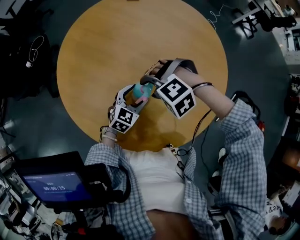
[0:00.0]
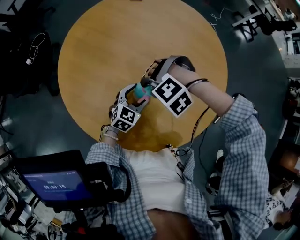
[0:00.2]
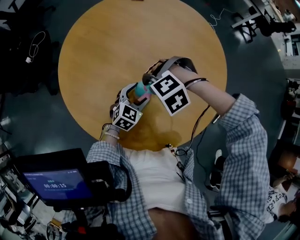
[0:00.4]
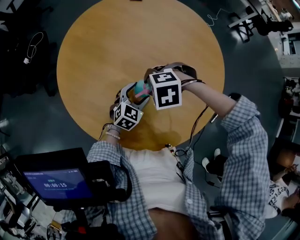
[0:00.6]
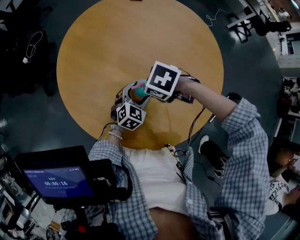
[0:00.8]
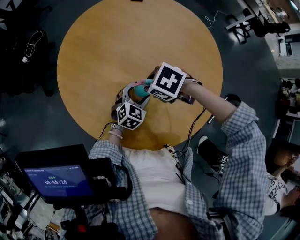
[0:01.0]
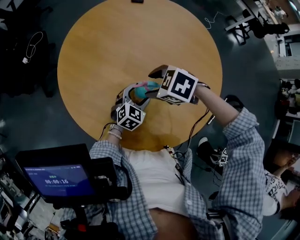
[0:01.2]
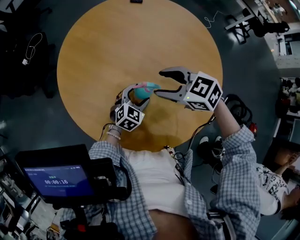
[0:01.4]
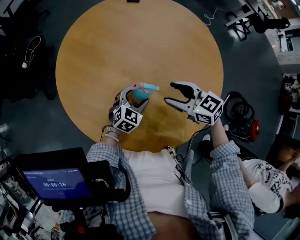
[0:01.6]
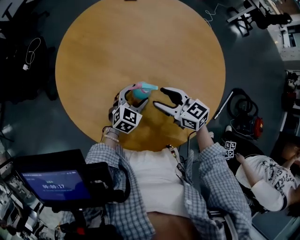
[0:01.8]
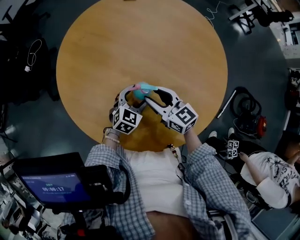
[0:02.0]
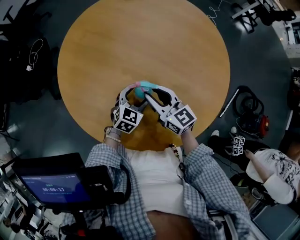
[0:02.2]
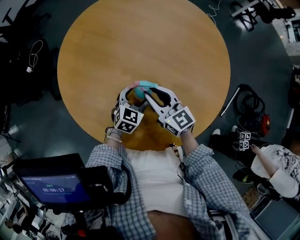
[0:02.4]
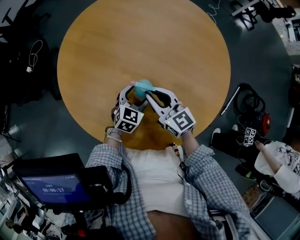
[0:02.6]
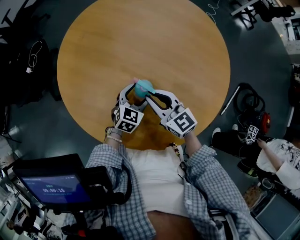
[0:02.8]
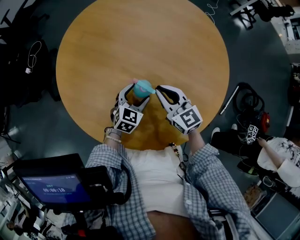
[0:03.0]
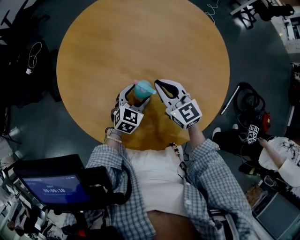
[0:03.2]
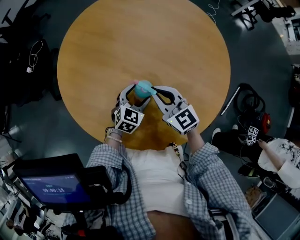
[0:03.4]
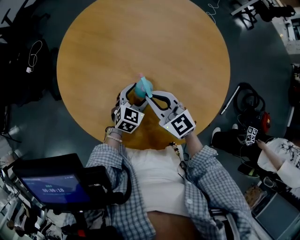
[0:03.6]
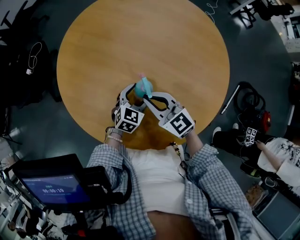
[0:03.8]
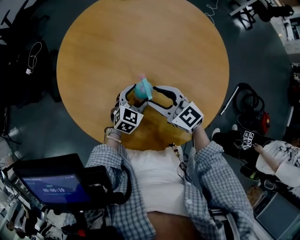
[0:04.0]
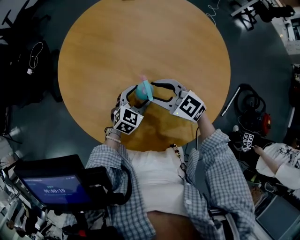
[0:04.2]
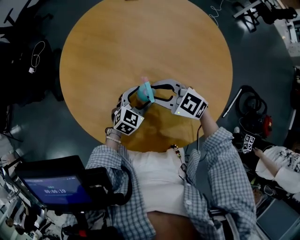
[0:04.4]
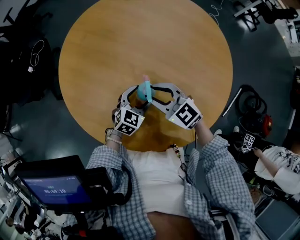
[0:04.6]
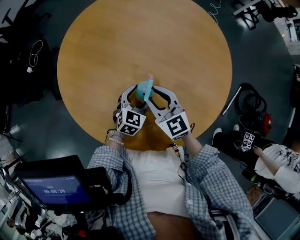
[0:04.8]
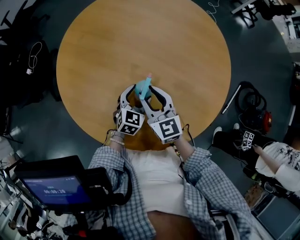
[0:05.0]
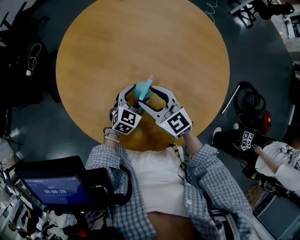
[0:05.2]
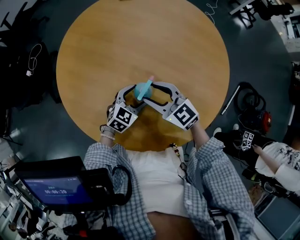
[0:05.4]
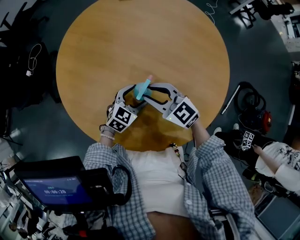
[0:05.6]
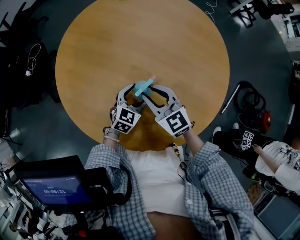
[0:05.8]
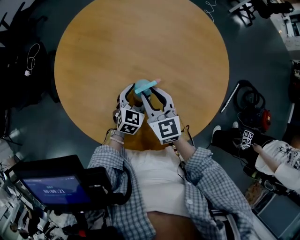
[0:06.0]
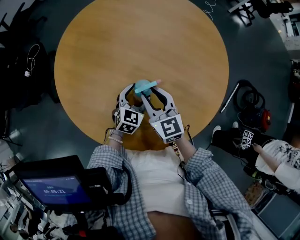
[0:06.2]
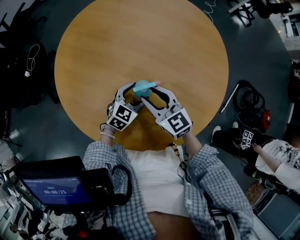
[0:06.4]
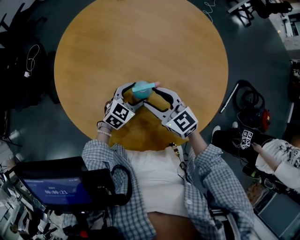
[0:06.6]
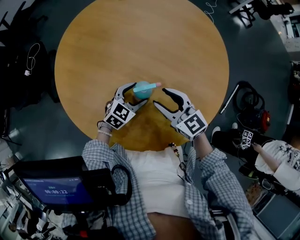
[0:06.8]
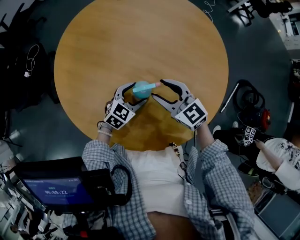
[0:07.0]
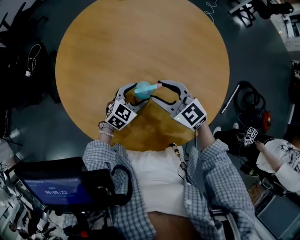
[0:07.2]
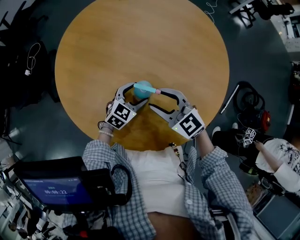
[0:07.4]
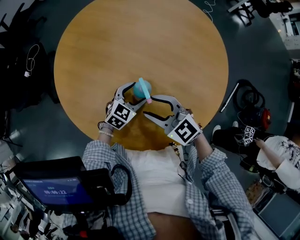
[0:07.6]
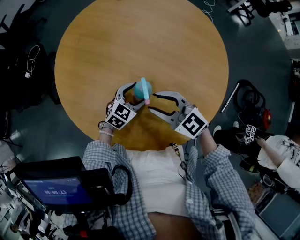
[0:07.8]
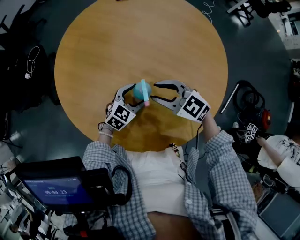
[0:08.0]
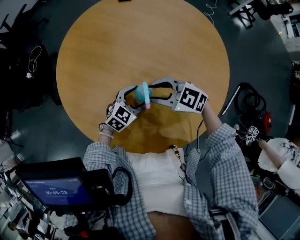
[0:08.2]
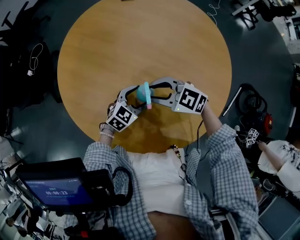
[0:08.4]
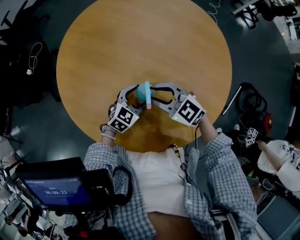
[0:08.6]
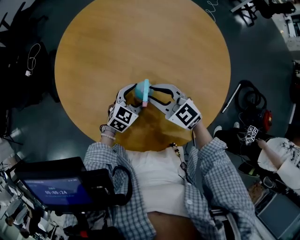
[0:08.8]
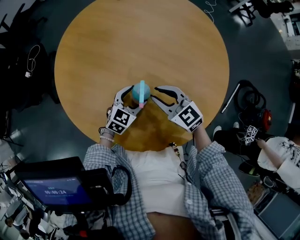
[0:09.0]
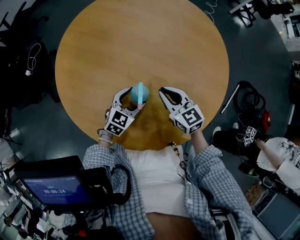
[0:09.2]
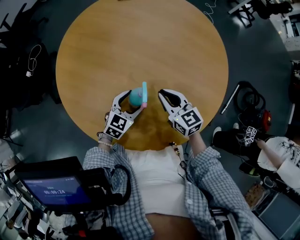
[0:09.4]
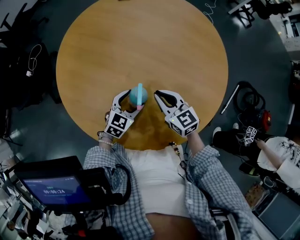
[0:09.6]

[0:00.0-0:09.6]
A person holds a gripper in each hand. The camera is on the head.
0:00.0 to 0:01.6: The right gripper shifts by roughly 10 cm, twists some 80 degrees clockwise, seen from behind, and closes, then reopens.
0:01.6 to 0:03.2: The right gripper goes roughly 5 cm to the left, changes its angle by some 30 degrees, and closes up.
0:03.2 to 0:04.8: The right gripper shifts by some 5 cm, and opens.
0:06.4 to 0:08.0: The right gripper changes its angle by approximately 30 degrees.
0:08.0 to 0:09.6: The right gripper turns by roughly 30 degrees, and closes up.

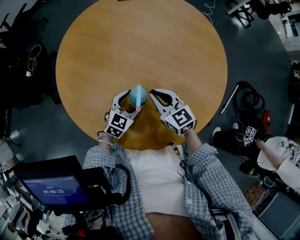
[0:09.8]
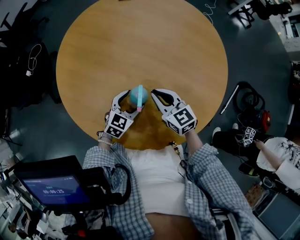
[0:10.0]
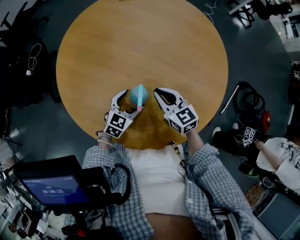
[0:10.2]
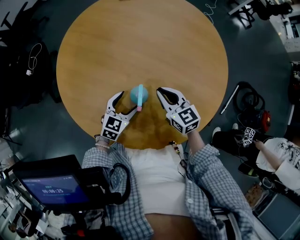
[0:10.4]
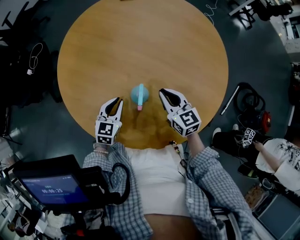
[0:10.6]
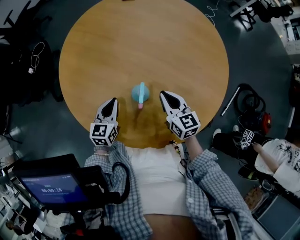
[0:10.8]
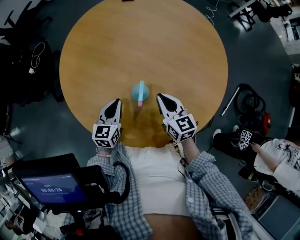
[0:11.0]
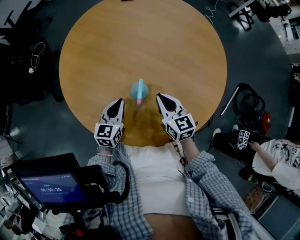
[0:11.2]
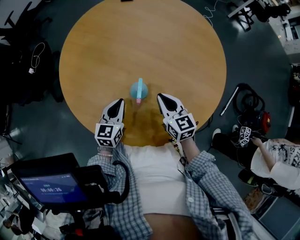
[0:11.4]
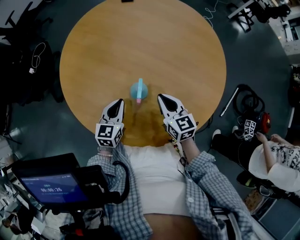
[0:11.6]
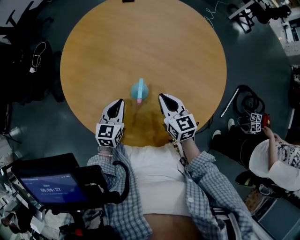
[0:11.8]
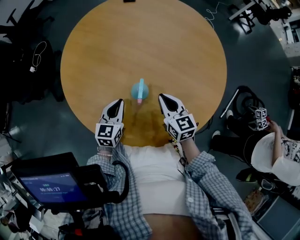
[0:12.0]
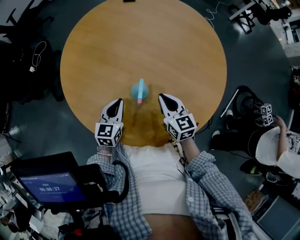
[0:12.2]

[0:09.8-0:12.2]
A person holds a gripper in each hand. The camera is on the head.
0:09.8 to 0:11.0: The left gripper heads to the left and upward, covering approximately 10 cm, changes its angle by about 30 degrees, and closes its fingers.
0:11.0 to 0:12.2: There are only small adjustments of the grippers.

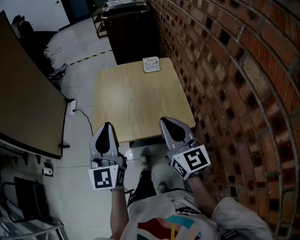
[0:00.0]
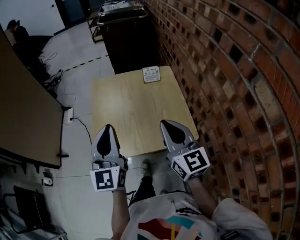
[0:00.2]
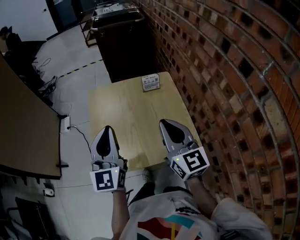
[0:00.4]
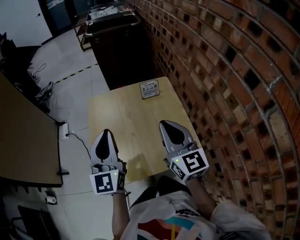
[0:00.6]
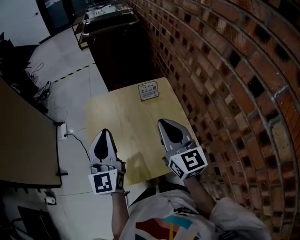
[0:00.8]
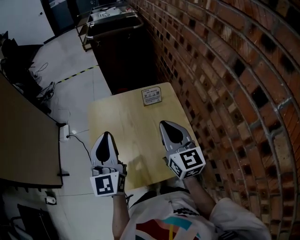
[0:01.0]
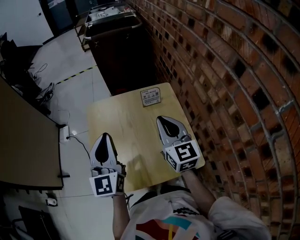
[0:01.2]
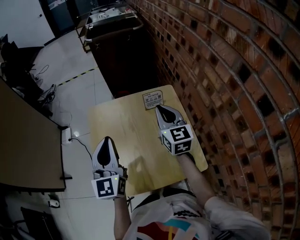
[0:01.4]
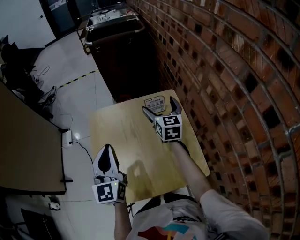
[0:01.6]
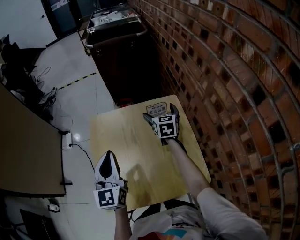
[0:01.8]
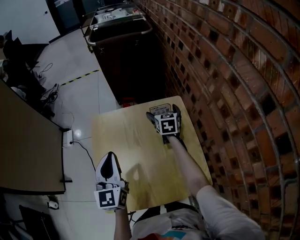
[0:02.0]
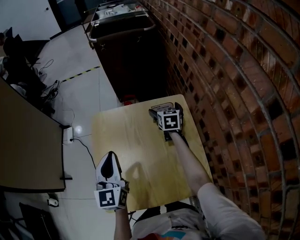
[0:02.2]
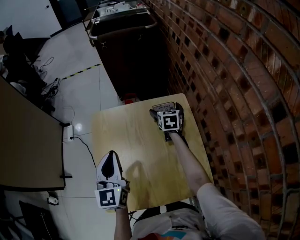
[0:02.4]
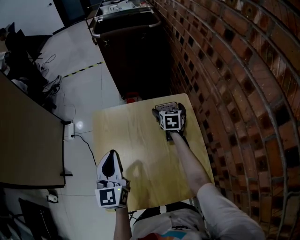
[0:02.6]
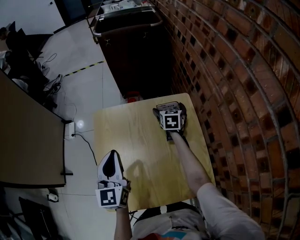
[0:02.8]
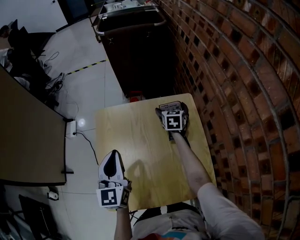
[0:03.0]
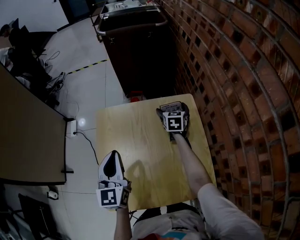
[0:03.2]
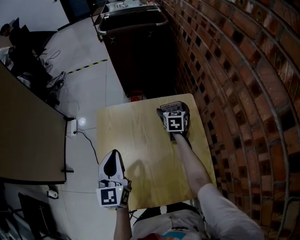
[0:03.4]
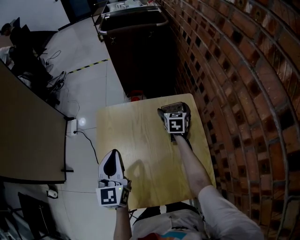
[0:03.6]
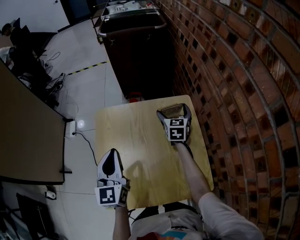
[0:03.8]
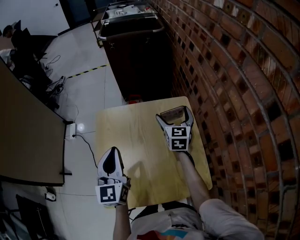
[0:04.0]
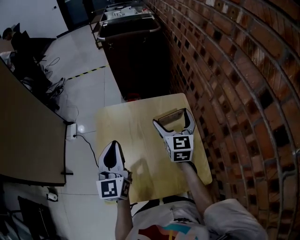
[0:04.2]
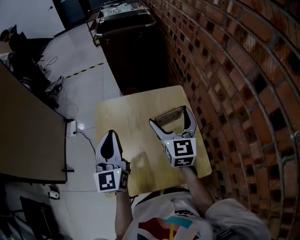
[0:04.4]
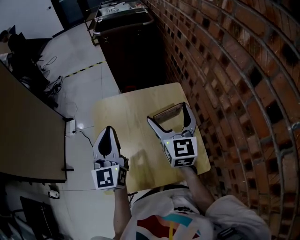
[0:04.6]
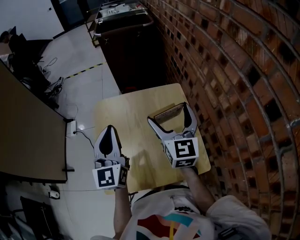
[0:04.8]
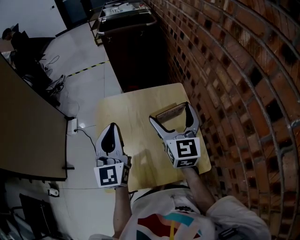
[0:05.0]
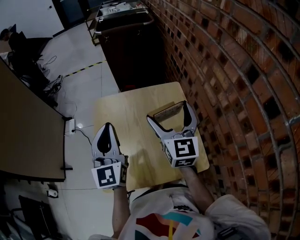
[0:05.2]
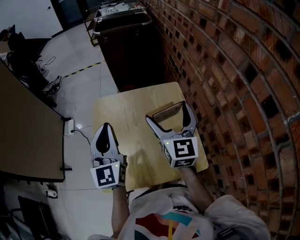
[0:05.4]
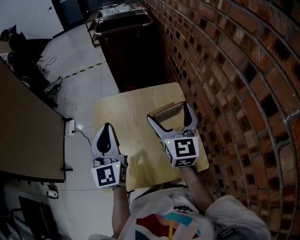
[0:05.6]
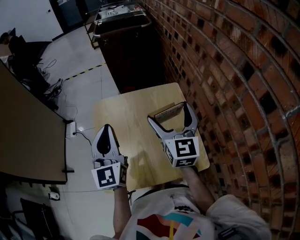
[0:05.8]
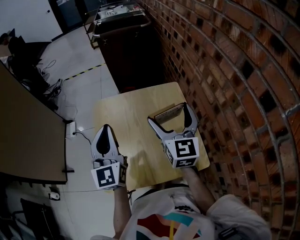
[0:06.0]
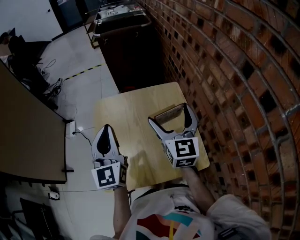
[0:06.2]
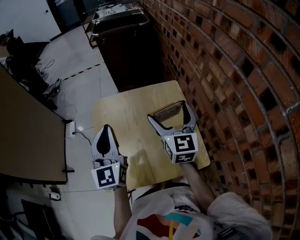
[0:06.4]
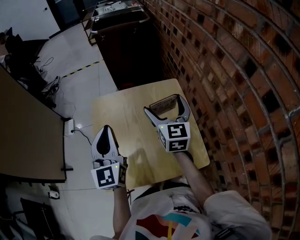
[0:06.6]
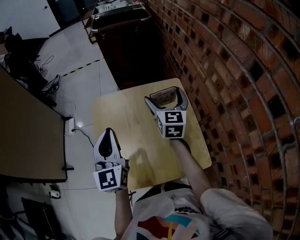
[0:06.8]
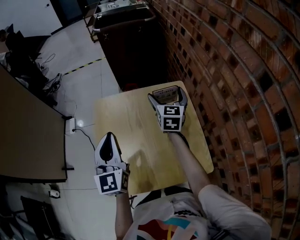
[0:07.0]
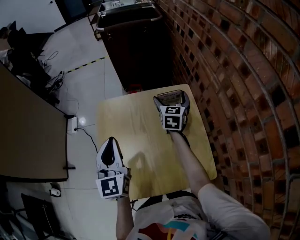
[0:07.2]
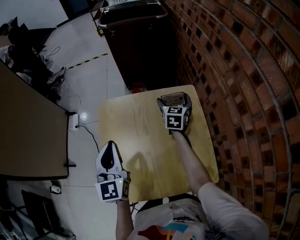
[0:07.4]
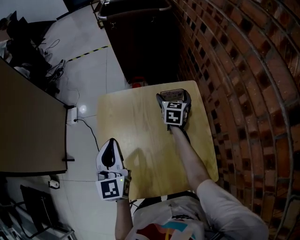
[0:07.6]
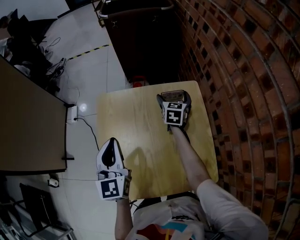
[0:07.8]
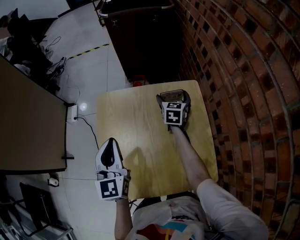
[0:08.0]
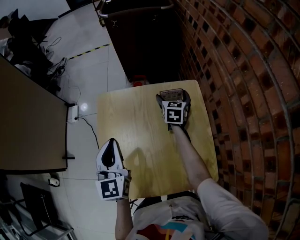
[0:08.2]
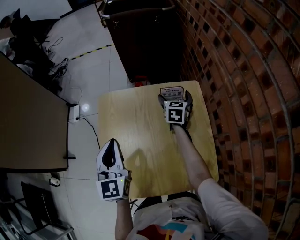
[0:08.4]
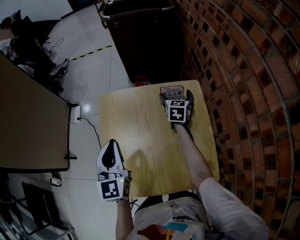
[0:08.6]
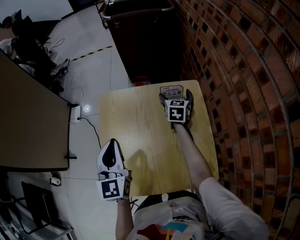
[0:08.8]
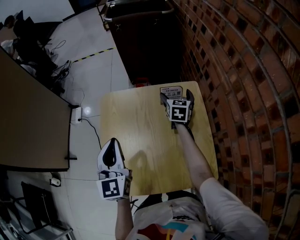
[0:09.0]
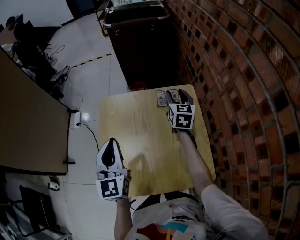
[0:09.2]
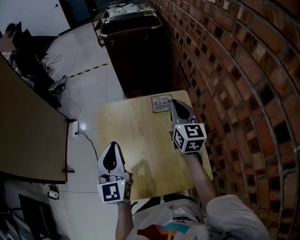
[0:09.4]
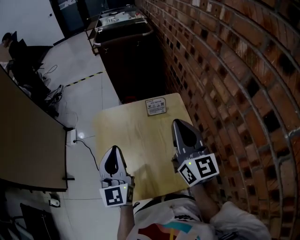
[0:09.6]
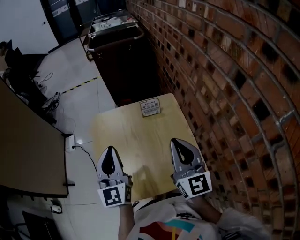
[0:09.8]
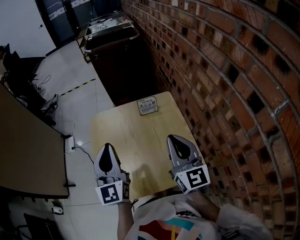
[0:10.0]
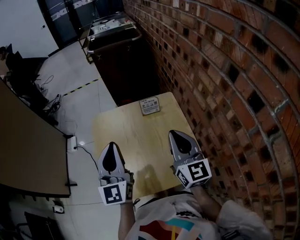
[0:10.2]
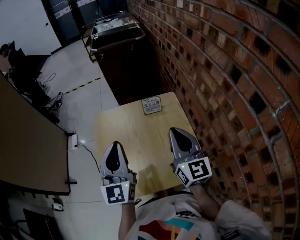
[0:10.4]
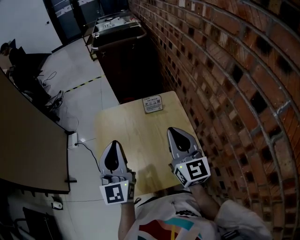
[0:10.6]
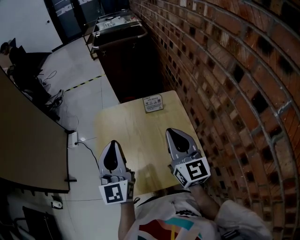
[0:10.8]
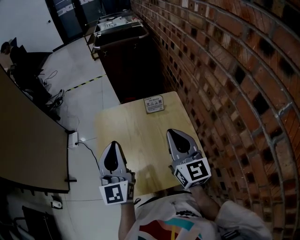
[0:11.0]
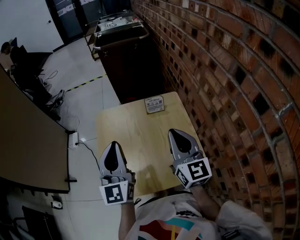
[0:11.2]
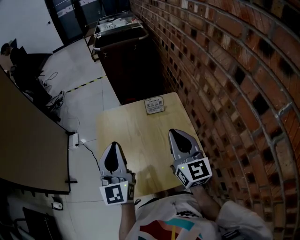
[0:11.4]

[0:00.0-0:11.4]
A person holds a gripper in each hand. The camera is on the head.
0:00.0 to 0:01.4: Both grippers travel together forward, approximately 30 cm.
0:01.4 to 0:02.8: The right gripper goes about 30 cm downward and forward, turns by approximately 30 degrees, and opens, while the left gripper travels downward and forward by roughly 10 cm.
0:02.8 to 0:04.2: The right gripper moves upward and backward, approximately 25 cm, and changes its angle by approximately 30 degrees. The left gripper shifts by some 5 cm.
0:04.2 to 0:05.6: The left gripper moves upward, roughly 5 cm, while the right gripper moves backward and upward, about 15 cm.
0:05.6 to 0:07.2: The left gripper goes some 5 cm downward. The right gripper is displaced forward and downward by roughly 25 cm, and rotates roughly 20 degrees.
0:07.2 to 0:08.6: The right gripper shifts about 10 cm downward.
0:08.6 to 0:10.0: The left gripper travels upward, backward and to the right by approximately 10 cm; the right gripper is displaced backward and upward by about 40 cm, points its fingers some 30 degrees further upward, and closes its fingers.
0:10.0 to 0:11.4: The grippers stay close to where they were, moving slightly.
